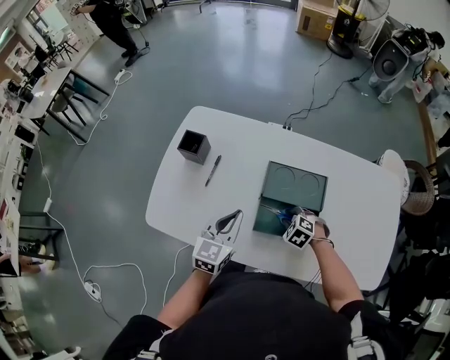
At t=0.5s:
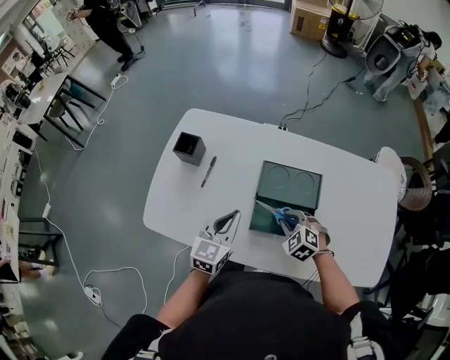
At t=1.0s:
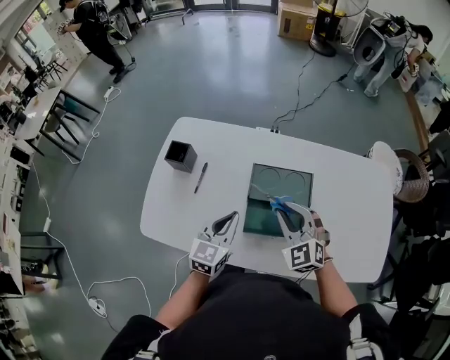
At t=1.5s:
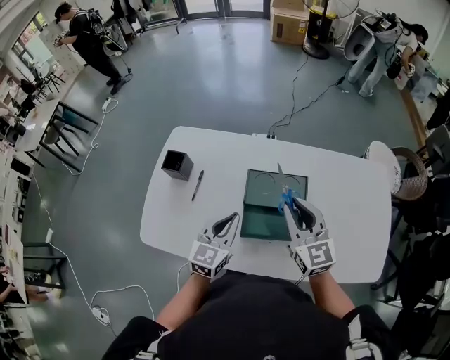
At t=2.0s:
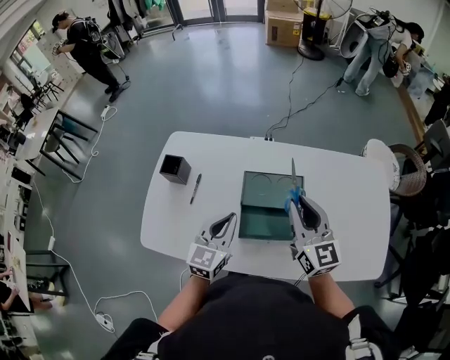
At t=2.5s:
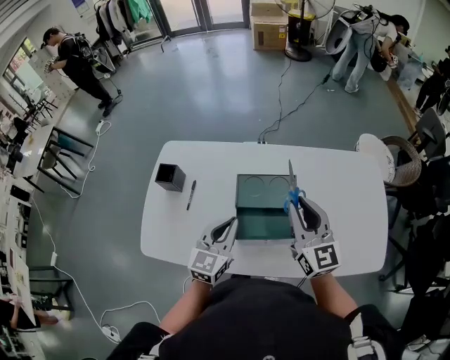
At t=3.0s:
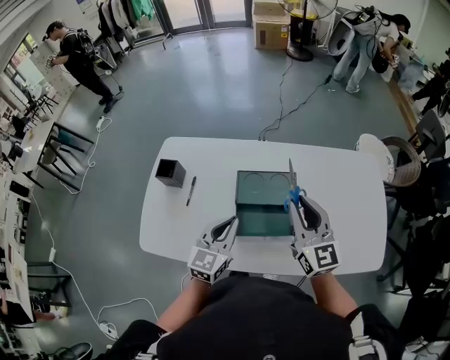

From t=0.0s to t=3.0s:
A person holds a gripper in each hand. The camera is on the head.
From t=0.0s to t=1.5s: The right gripper goes approximately 30 cm upward, and tips its fingers upward by approximately 60 degrees. The left gripper moves approximately 5 cm.
From t=1.5s to t=3.0s: The right gripper shifts about 5 cm to the right.

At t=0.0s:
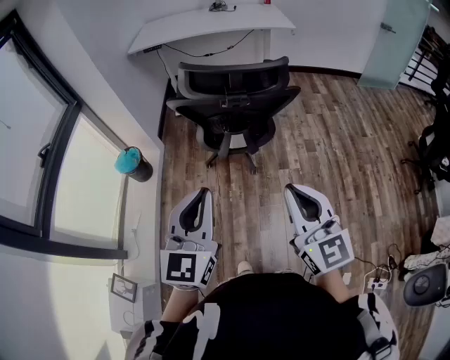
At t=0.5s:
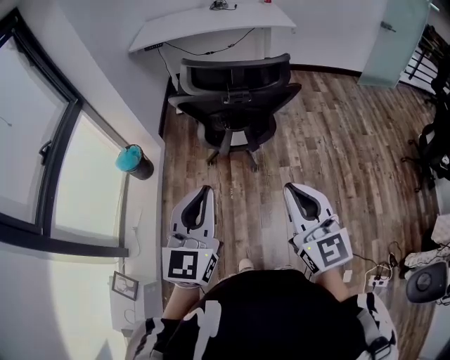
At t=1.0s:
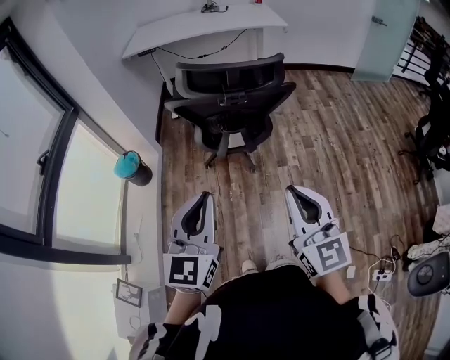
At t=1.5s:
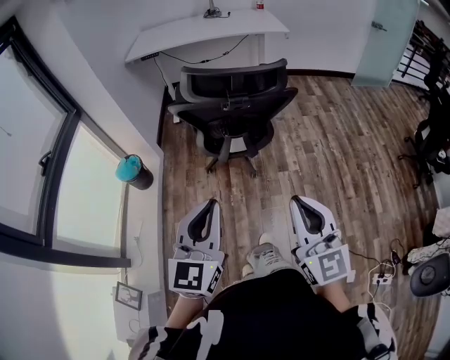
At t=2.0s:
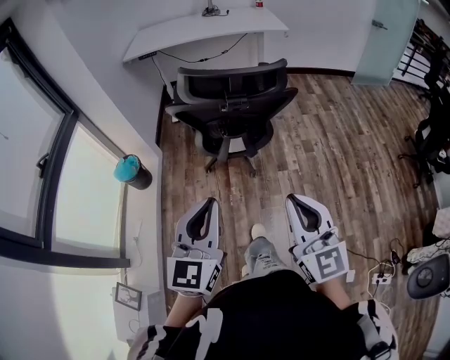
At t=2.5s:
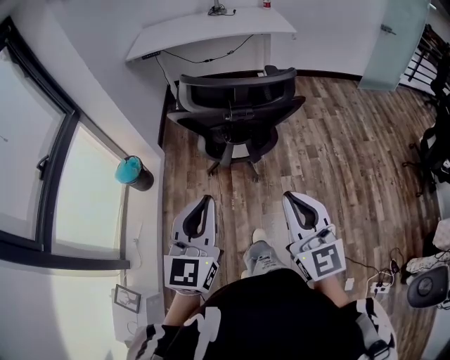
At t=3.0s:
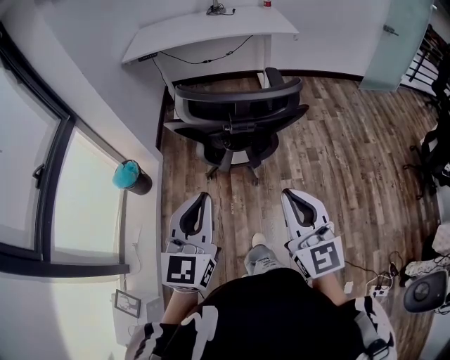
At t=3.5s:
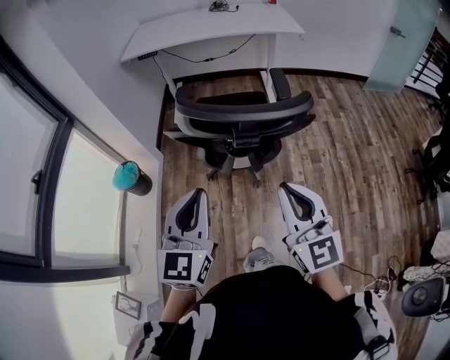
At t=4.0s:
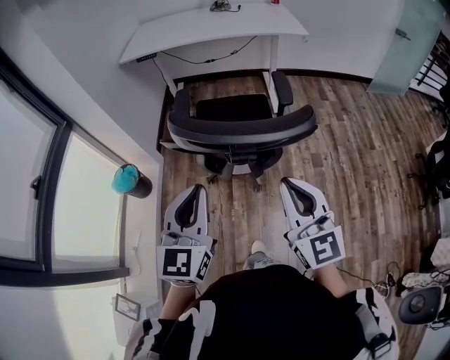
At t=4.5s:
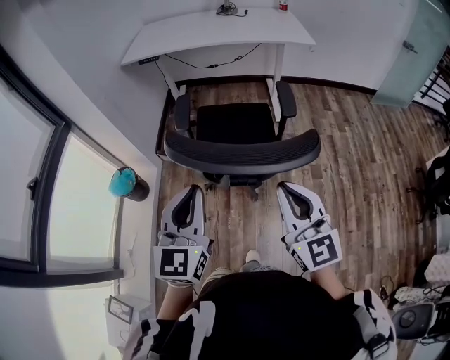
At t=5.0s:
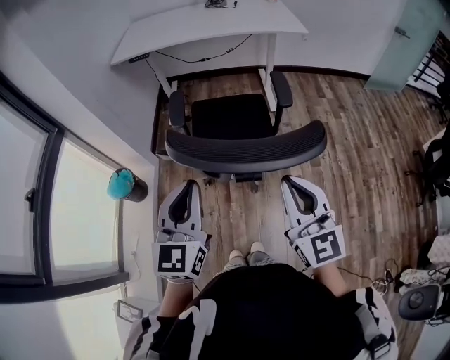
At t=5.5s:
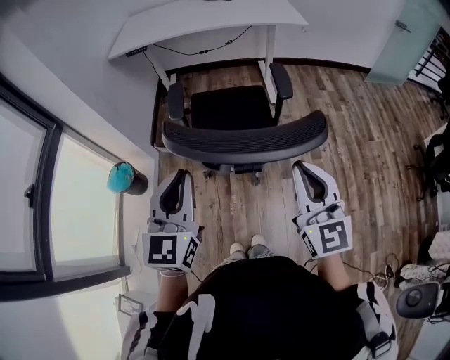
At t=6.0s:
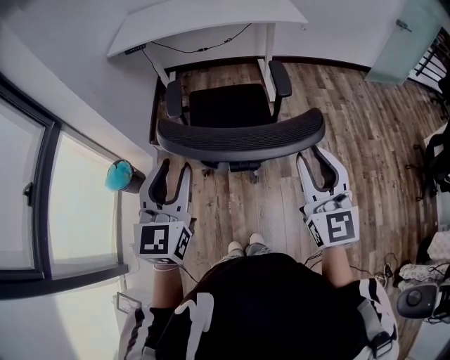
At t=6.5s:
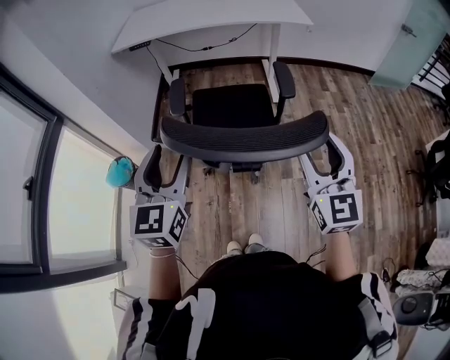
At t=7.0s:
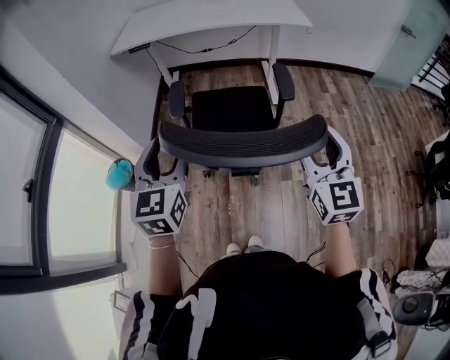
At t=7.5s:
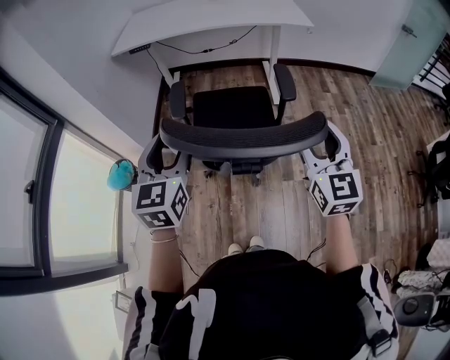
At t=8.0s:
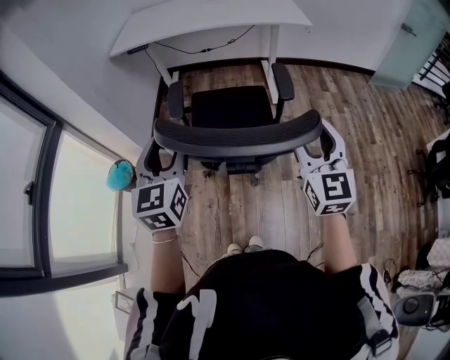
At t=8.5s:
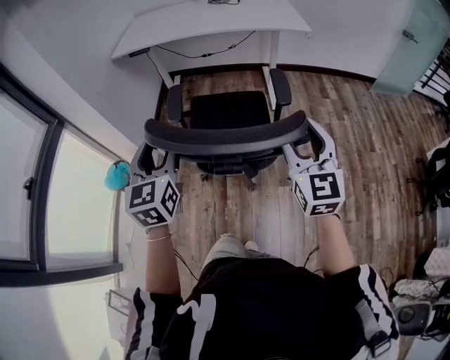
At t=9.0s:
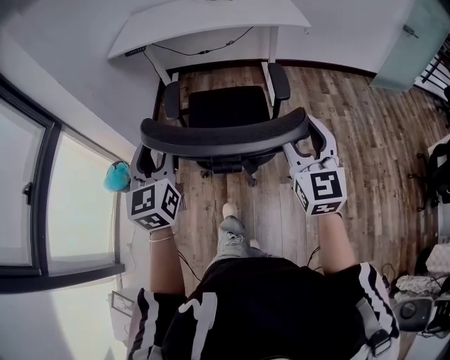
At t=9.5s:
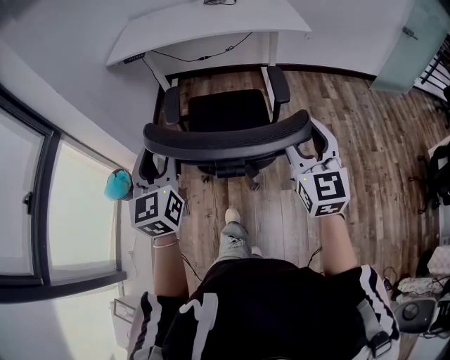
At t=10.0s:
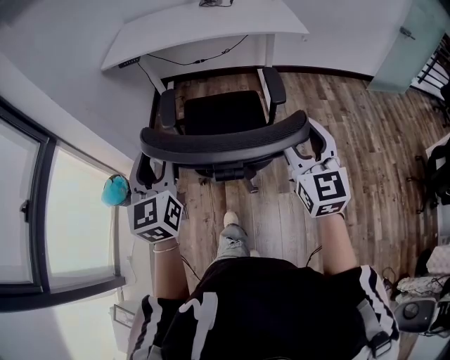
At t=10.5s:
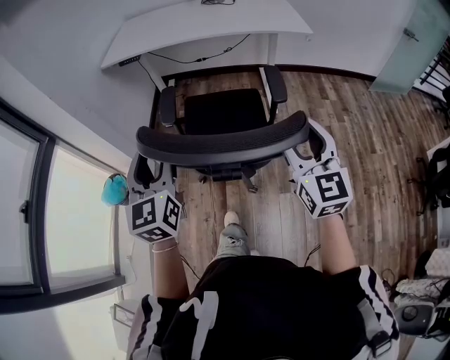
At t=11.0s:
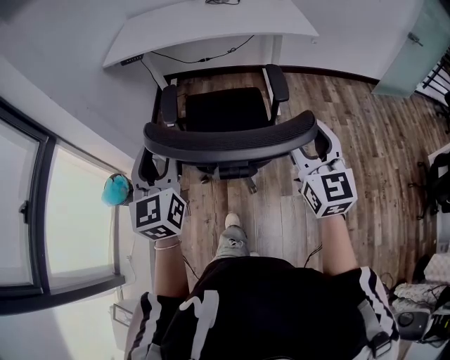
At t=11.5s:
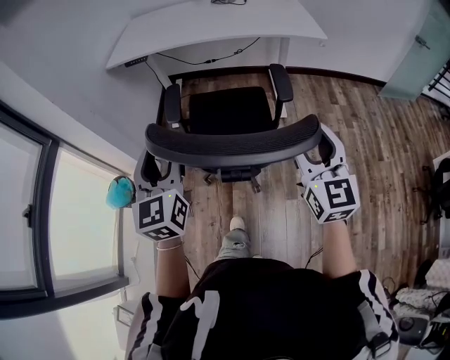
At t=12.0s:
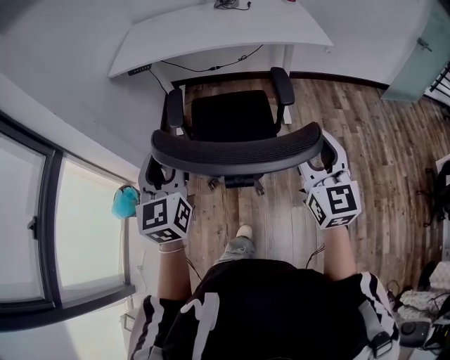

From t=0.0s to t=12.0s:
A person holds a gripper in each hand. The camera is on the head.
From t=0.0s to t=2.0s: The grippers stay close to where they were, moving slightly.
From t=2.0s to t=4.0s: The grippers both shift forward by some 25 cm.
From t=4.0s to t=6.0s: The right gripper shifts approximately 10 cm forward and to the right, and opens its fingers, while the left gripper travels forward by some 10 cm, and opens.
From t=6.0s to t=8.0s: Both grippers move forward, roughly 10 cm. The left gripper opens up, while the right gripper opens up.
From t=8.0s to t=10.0s: Both grippers travel together forward, approximately 5 cm.
From t=10.0s to t=12.0s: The two grippers go approximately 10 cm forward.

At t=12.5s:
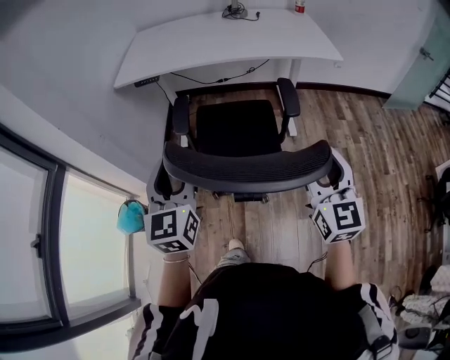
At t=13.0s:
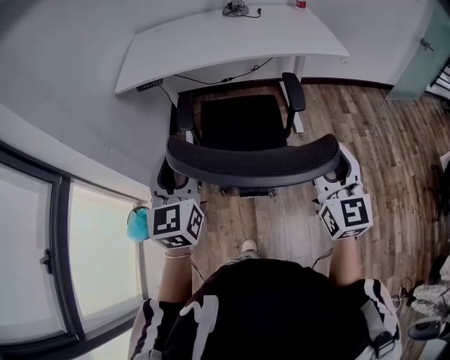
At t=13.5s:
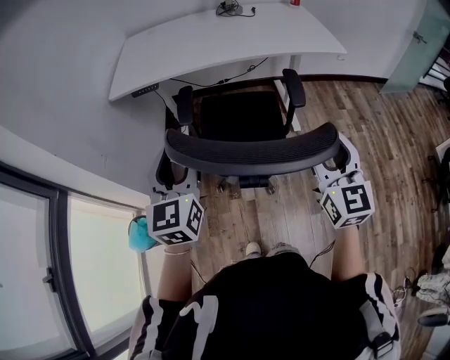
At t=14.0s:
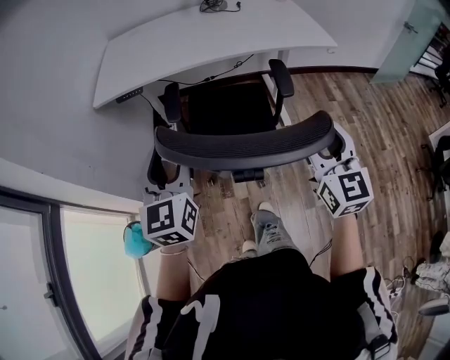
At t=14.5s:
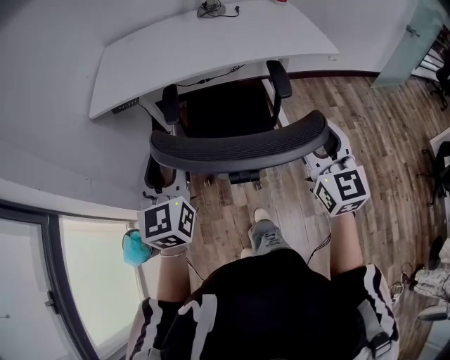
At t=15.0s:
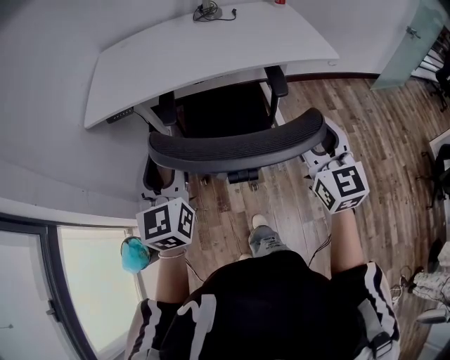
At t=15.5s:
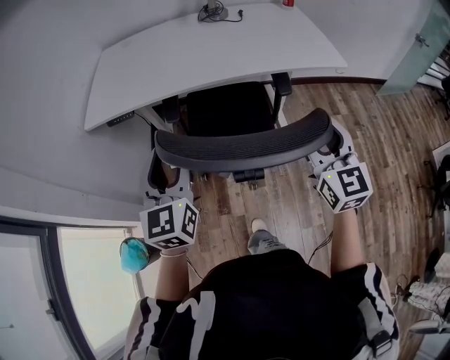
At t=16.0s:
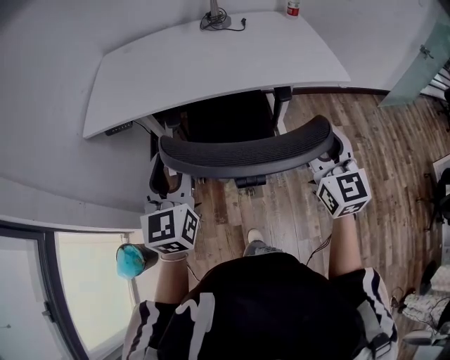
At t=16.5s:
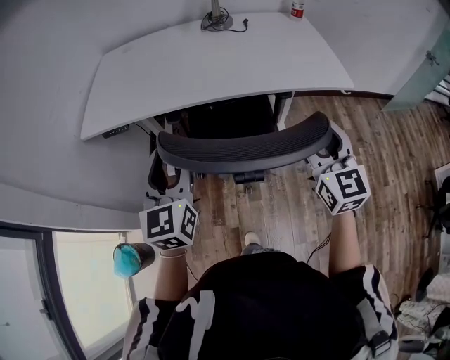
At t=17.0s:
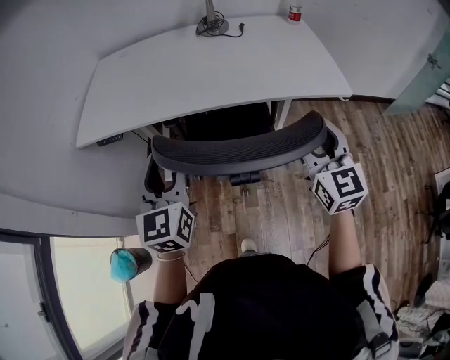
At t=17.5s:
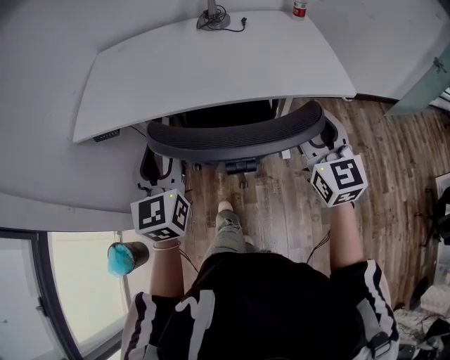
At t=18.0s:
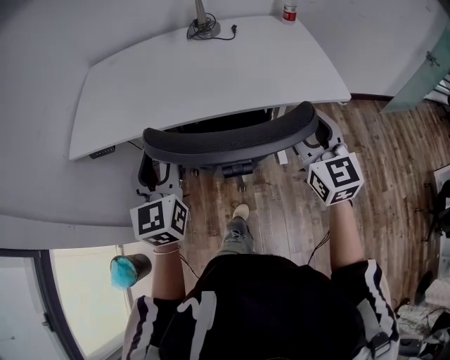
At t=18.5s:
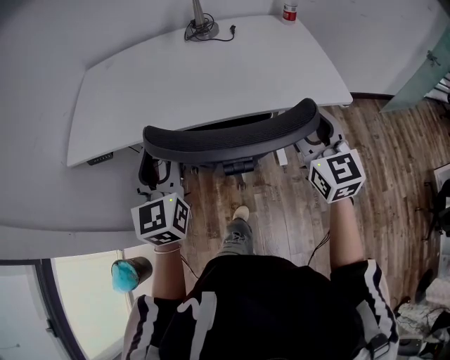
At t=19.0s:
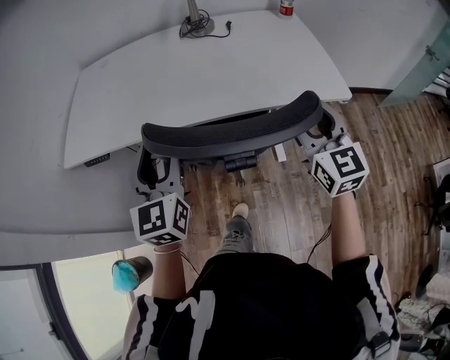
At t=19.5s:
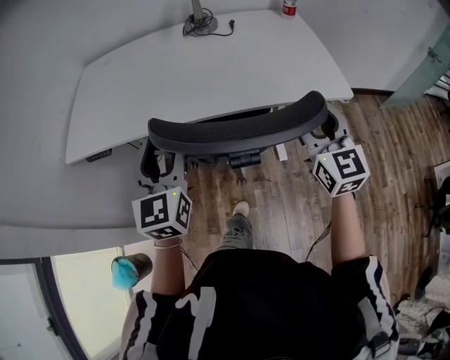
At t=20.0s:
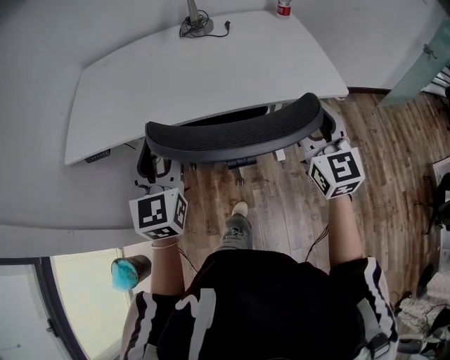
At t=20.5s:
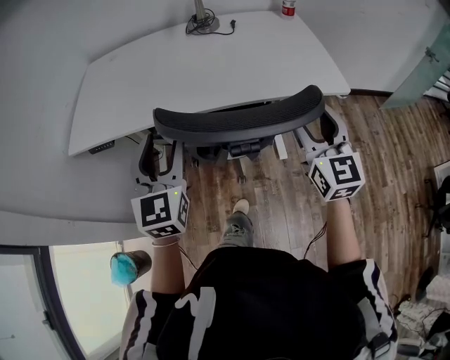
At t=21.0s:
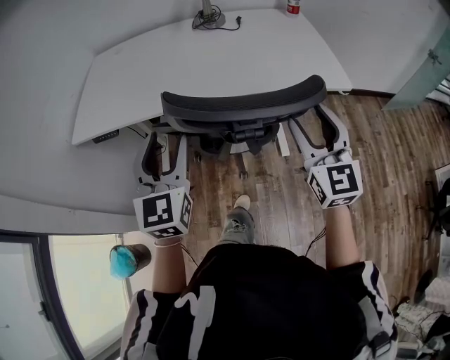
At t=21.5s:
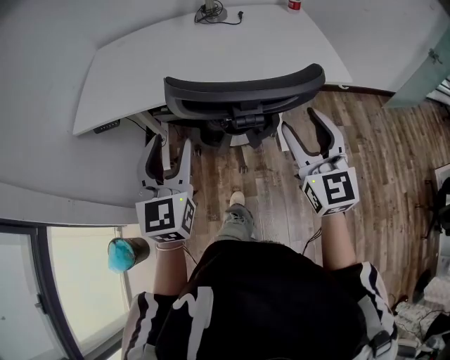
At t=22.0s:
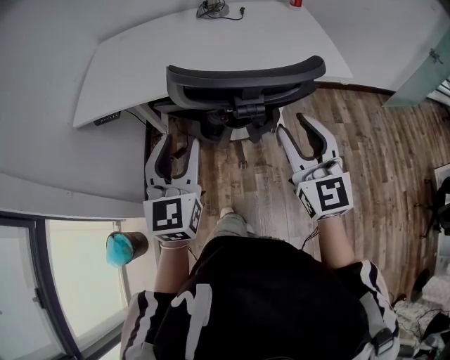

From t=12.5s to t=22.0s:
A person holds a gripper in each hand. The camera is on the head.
From t=12.5s to t=14.5s: The grippers both shift forward by roughly 15 cm.
From t=14.5s to t=16.5s: The two grippers go some 20 cm forward and to the right.
From t=16.5s to t=18.0s: The grippers both shift forward by some 10 cm.
From t=18.0s to t=20.0s: There are only small adjustments of the grippers.
From t=20.0s to t=22.0s: The right gripper is displaced backward and to the left by roughly 15 cm; the left gripper moves backward, some 15 cm.

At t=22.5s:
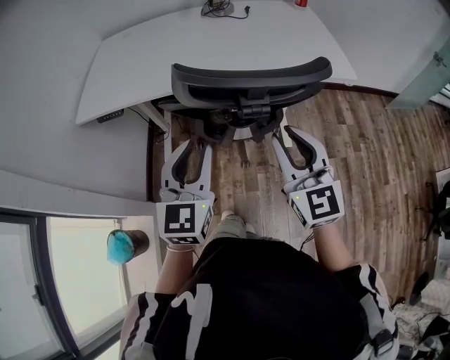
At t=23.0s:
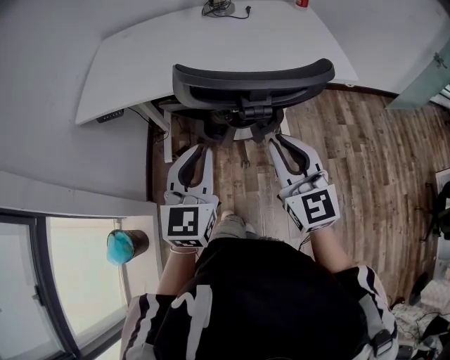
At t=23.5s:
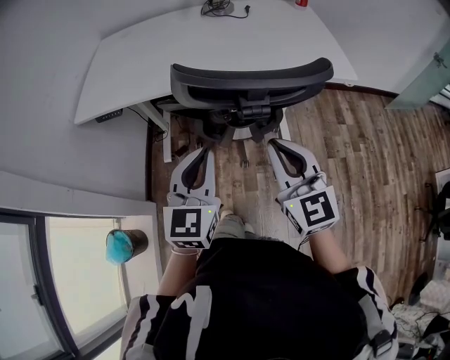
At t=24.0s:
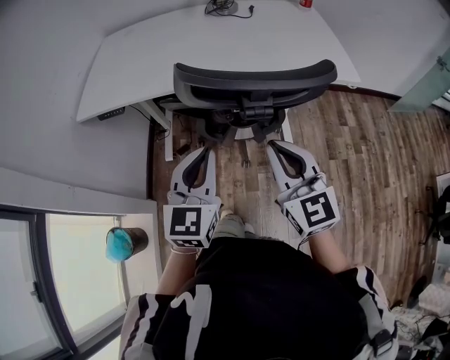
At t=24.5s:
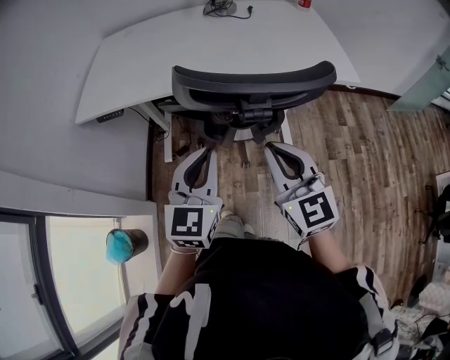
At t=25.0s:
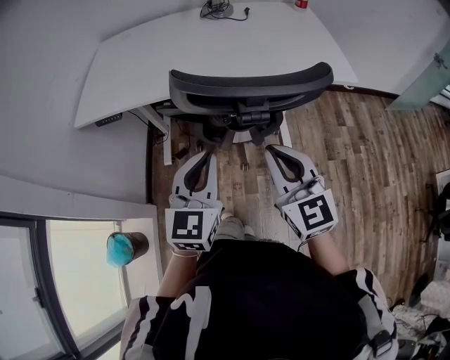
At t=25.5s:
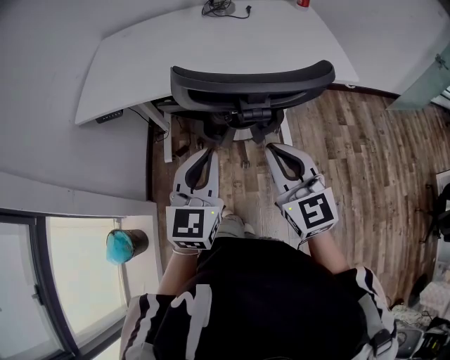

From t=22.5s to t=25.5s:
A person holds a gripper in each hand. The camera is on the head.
From t=22.5s to t=24.0s: The left gripper closes up; the right gripper closes up.
From t=24.0s to t=25.5s: Both grippers stay put.
